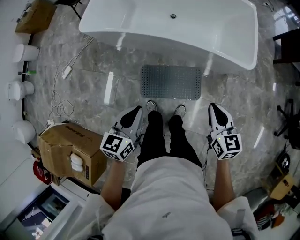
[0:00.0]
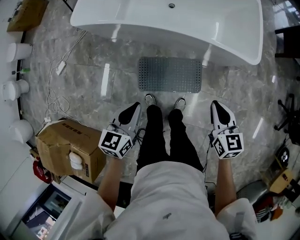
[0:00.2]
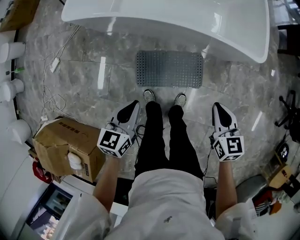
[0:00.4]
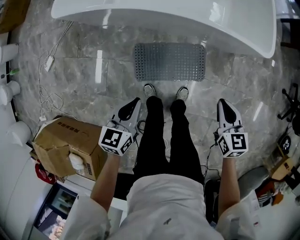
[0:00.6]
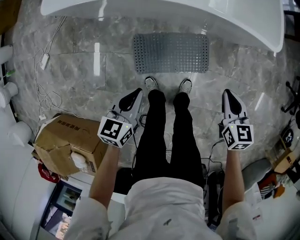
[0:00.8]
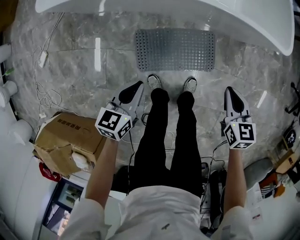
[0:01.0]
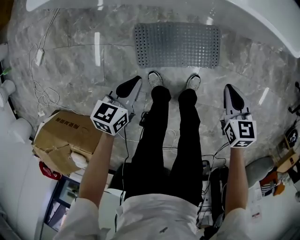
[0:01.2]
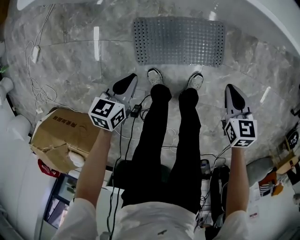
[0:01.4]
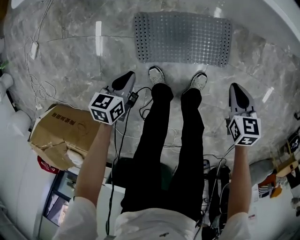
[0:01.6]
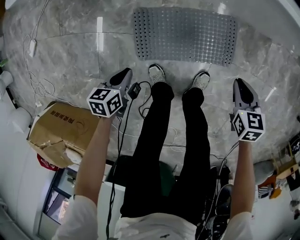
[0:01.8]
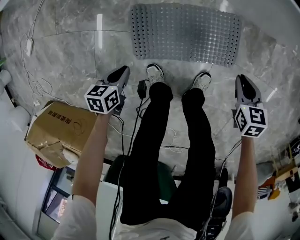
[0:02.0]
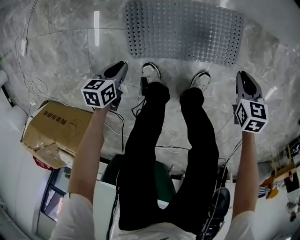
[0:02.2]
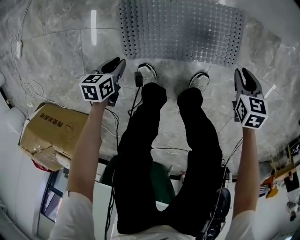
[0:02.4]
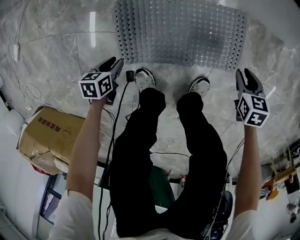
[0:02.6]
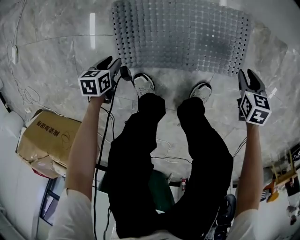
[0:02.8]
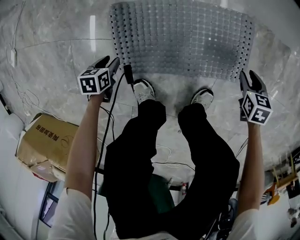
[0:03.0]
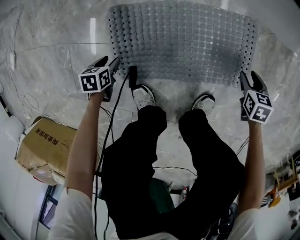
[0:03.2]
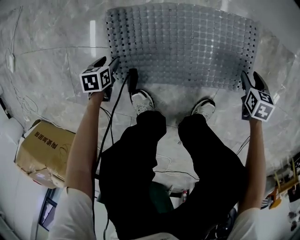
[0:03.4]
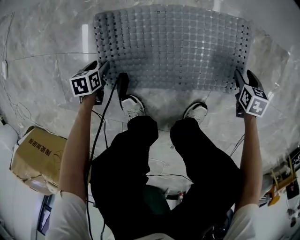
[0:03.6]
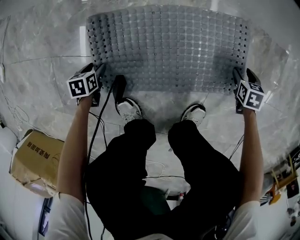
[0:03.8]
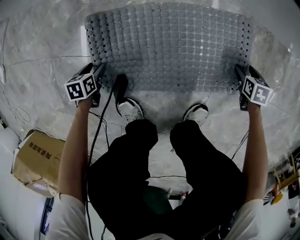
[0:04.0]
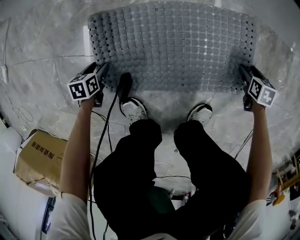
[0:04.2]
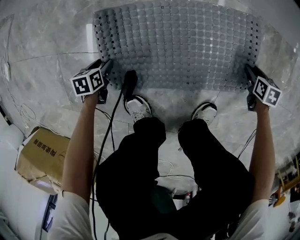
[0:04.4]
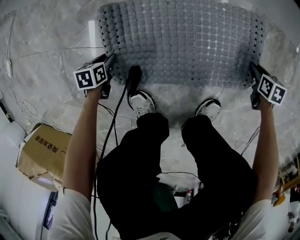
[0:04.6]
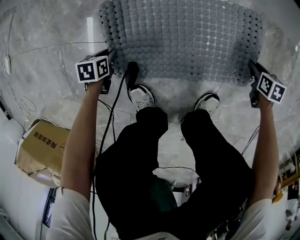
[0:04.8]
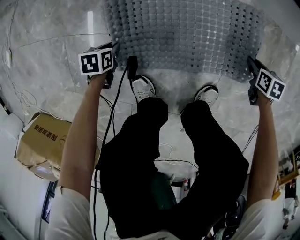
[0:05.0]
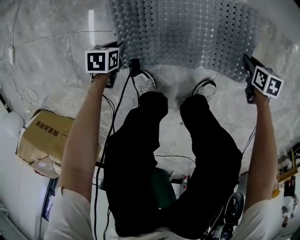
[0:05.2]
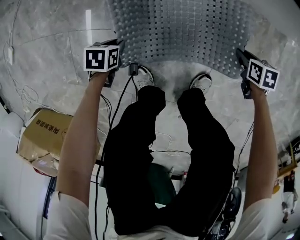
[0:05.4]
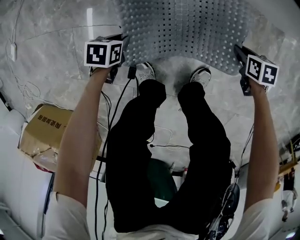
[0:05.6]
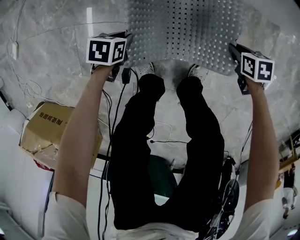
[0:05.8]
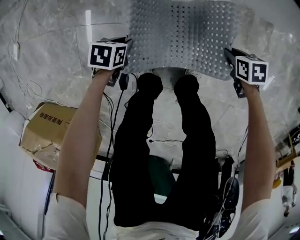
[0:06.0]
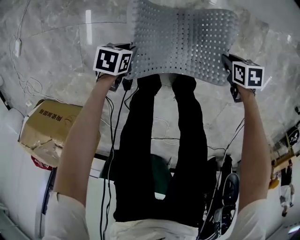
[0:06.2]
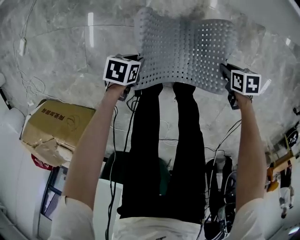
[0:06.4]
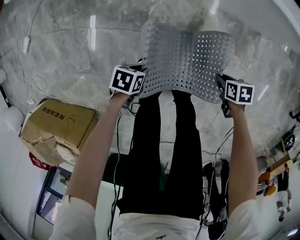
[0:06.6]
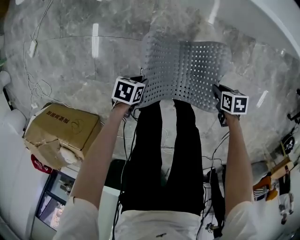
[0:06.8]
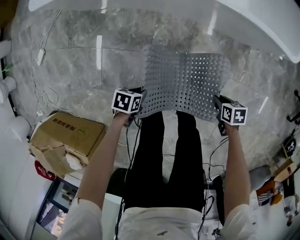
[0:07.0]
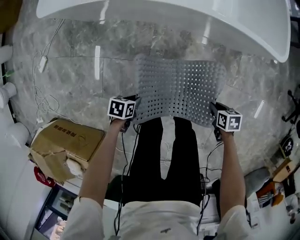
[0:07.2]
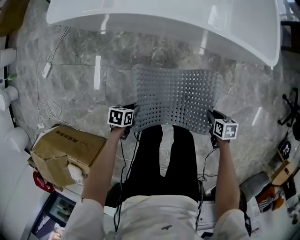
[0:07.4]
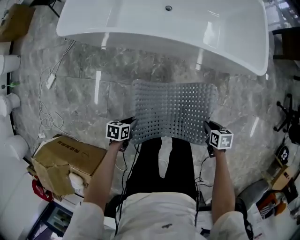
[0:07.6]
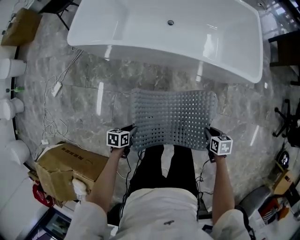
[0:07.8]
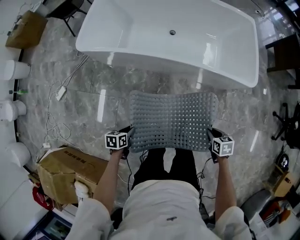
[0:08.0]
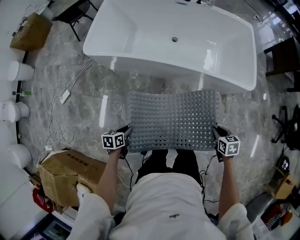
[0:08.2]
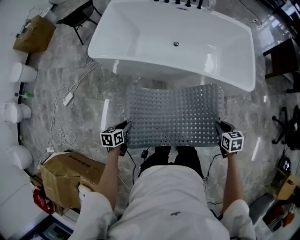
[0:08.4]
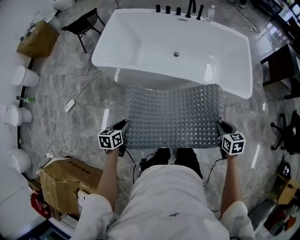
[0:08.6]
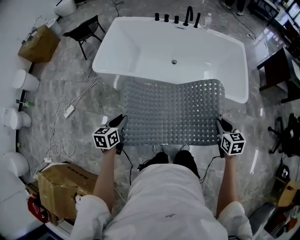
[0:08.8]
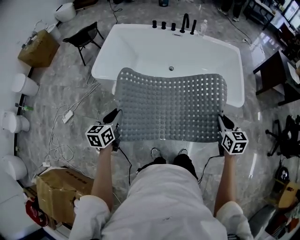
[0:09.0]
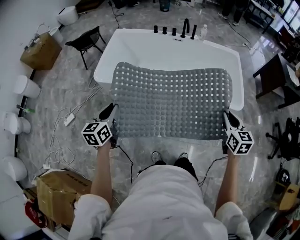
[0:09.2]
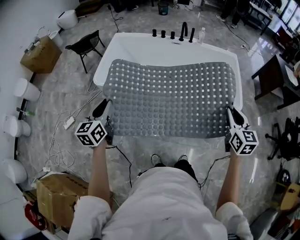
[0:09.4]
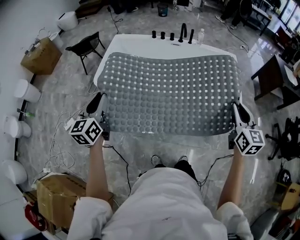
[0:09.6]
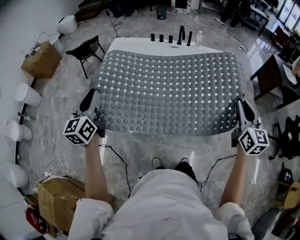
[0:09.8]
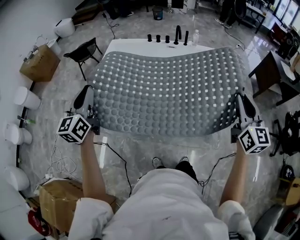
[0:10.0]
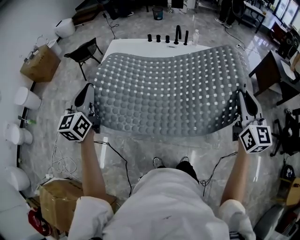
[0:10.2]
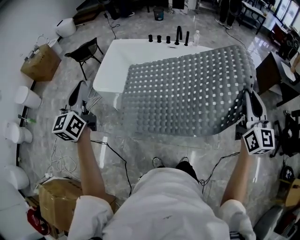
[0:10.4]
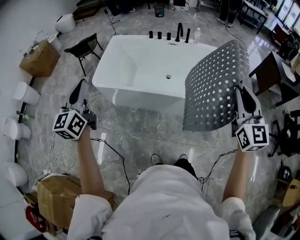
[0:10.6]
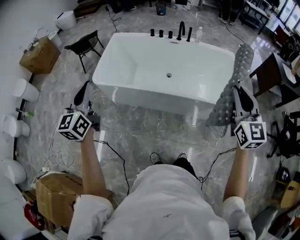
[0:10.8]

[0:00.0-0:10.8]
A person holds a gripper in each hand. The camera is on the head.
0:00.0 to 0:01.6: Both grippers move downward, some 50 cm. The right gripper changes its angle by some 30 degrees, while the left gripper changes its angle by roughly 30 degrees.
0:01.6 to 0:03.0: The grippers both shift downward by some 35 cm. The right gripper opens its fingers. The left gripper swivels about 20 degrees, and opens up.
0:03.0 to 0:04.6: The grippers both shift downward by about 10 cm. The right gripper opens, then closes again.
0:04.6 to 0:06.2: The two grippers go roughly 30 cm upward. The left gripper swivels roughly 20 degrees.
0:06.2 to 0:07.8: The two grippers go some 35 cm upward. The left gripper turns by about 20 degrees.
0:07.8 to 0:09.2: The right gripper heads upward, covering about 40 cm, and points its fingers some 40 degrees further upward. The left gripper shifts approximately 40 cm upward and forward, and points its fingers some 40 degrees further upward.
0:09.2 to 0:10.8: The grippers both shift upward by roughly 20 cm. The right gripper swivels about 30 degrees. Meanwhile the left gripper swivels roughly 30 degrees.

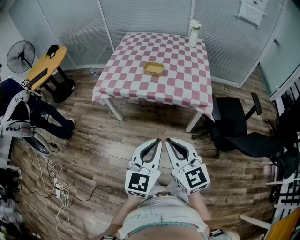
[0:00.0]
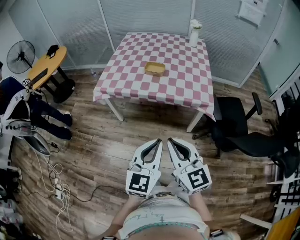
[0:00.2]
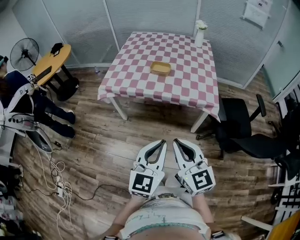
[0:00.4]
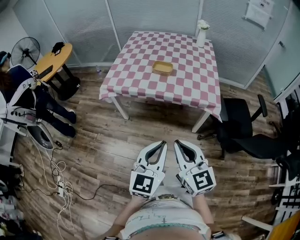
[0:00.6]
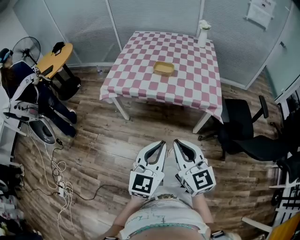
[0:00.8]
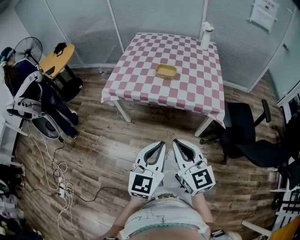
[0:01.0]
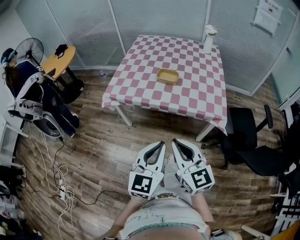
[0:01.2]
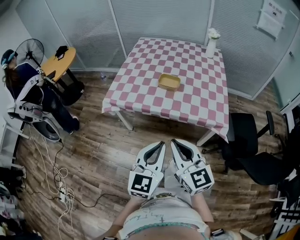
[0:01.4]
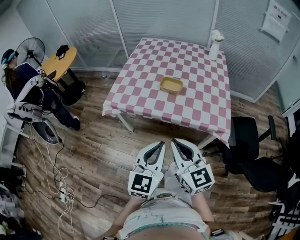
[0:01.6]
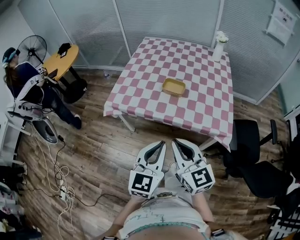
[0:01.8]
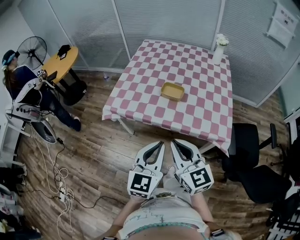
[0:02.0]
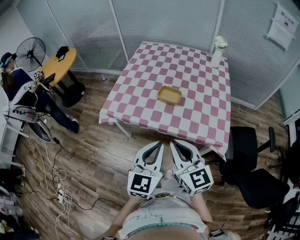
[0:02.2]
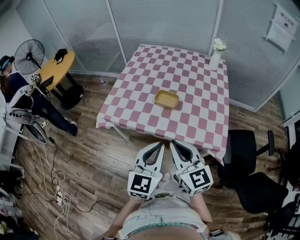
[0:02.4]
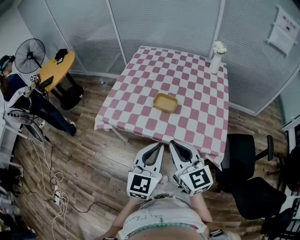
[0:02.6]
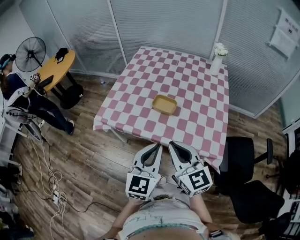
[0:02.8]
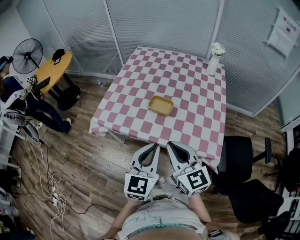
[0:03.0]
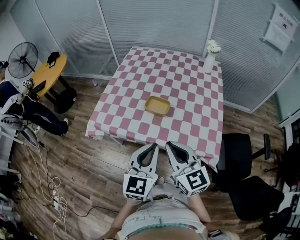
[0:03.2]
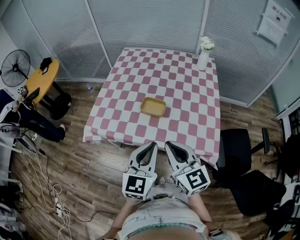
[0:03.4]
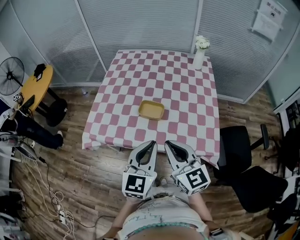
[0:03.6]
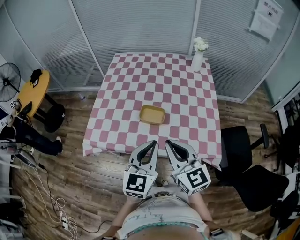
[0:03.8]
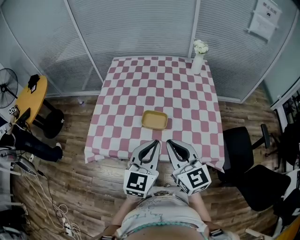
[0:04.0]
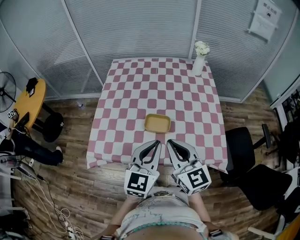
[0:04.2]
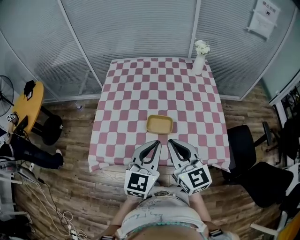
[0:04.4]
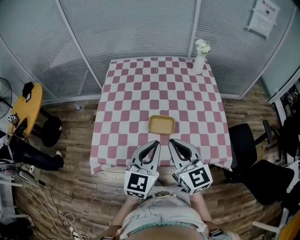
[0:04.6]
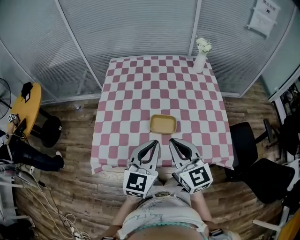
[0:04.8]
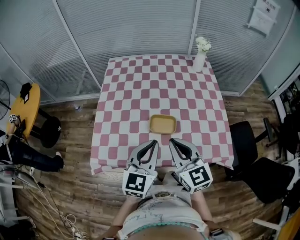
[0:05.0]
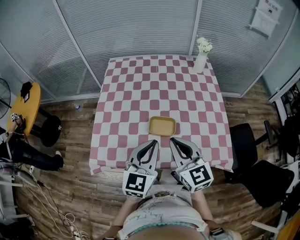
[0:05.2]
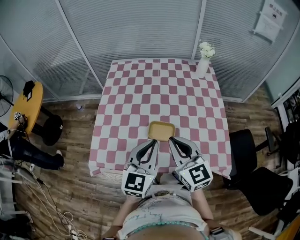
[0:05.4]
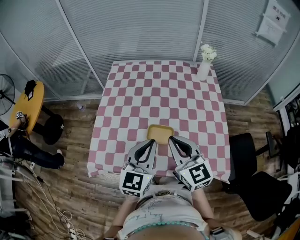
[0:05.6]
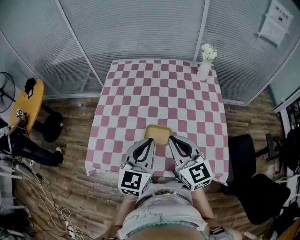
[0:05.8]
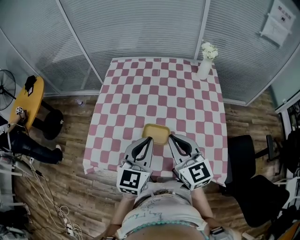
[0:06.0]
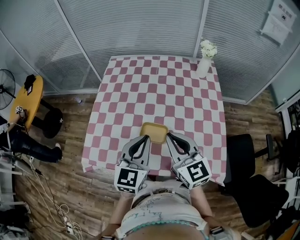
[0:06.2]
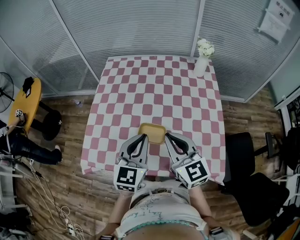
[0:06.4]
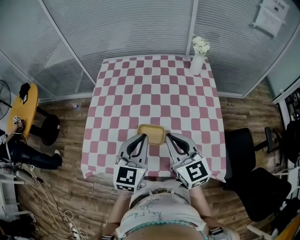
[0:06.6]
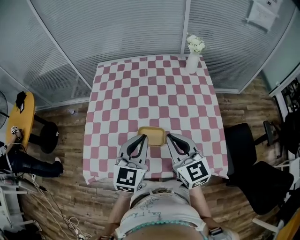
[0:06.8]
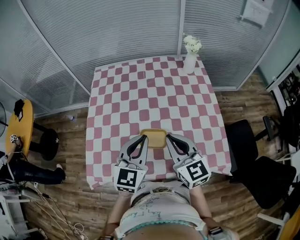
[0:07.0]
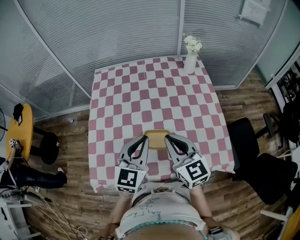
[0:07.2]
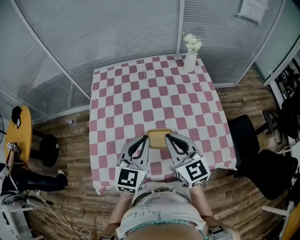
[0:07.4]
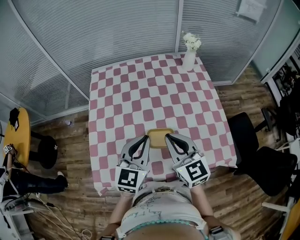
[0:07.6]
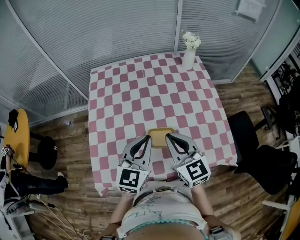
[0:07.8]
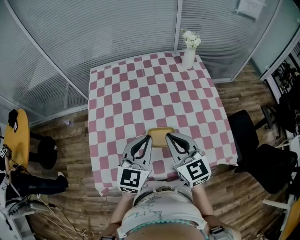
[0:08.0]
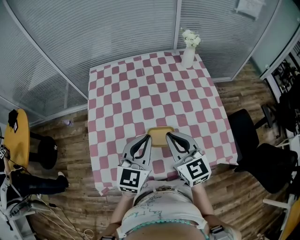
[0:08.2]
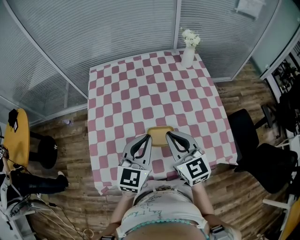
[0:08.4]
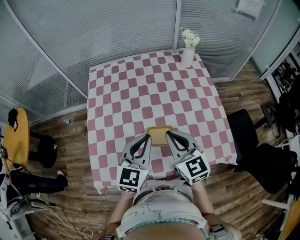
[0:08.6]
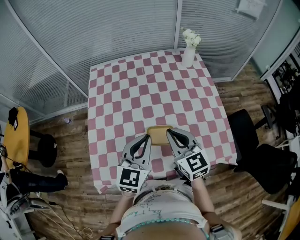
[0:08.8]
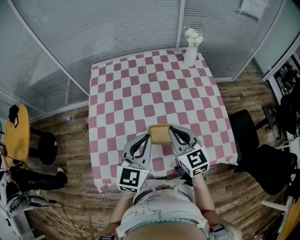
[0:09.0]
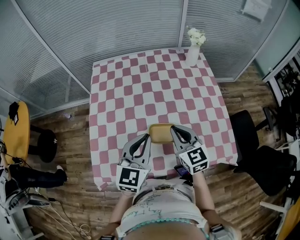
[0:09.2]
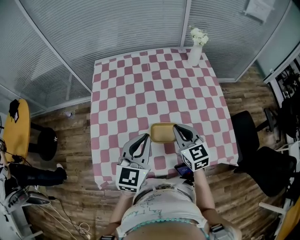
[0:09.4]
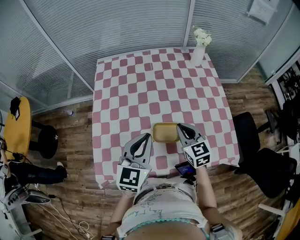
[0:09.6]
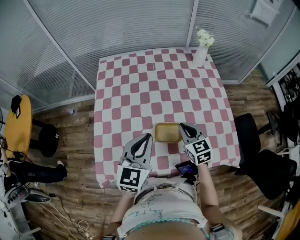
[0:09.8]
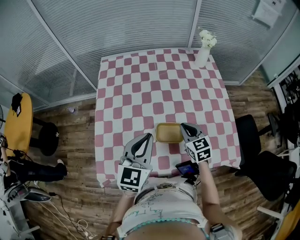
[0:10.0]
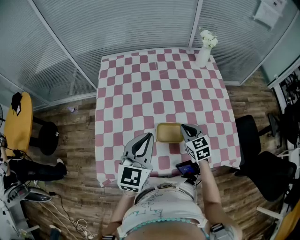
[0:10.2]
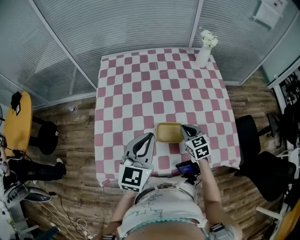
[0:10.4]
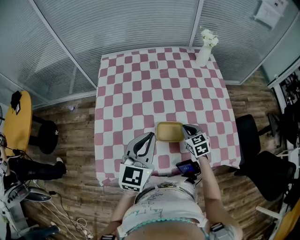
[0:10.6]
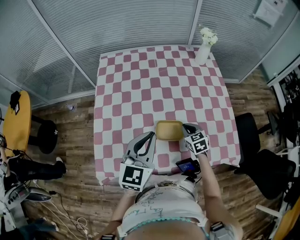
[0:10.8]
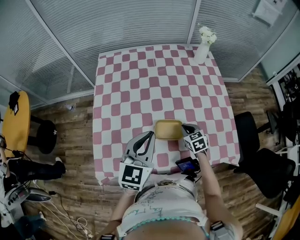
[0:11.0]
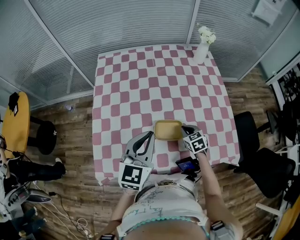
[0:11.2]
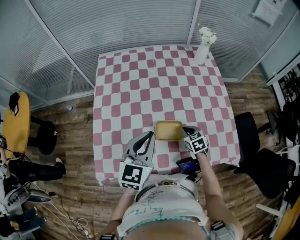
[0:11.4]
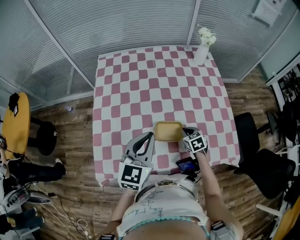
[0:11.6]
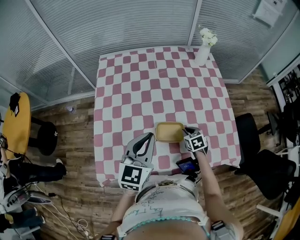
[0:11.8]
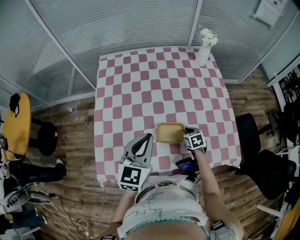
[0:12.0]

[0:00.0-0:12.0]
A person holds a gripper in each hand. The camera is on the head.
0:00.0 to 0:01.6: The grippers both shift forward by some 20 cm.
0:01.6 to 0:03.0: The grippers both shift forward and to the right by some 15 cm.
0:03.0 to 0:04.4: The two grippers go roughly 15 cm forward.
0:04.4 to 0:06.0: The grippers both shift forward by about 10 cm.
0:06.0 to 0:07.6: The right gripper is displaced to the left by roughly 5 cm; the left gripper travels forward and to the left by approximately 10 cm.
0:07.6 to 0:09.0: The right gripper ends up roughly 5 cm from where it was.
0:09.0 to 0:10.4: The right gripper goes roughly 15 cm downward, and rotates about 20 degrees.
0:10.4 to 0:12.0: The right gripper heads downward, covering some 10 cm, and changes its angle by roughly 20 degrees.

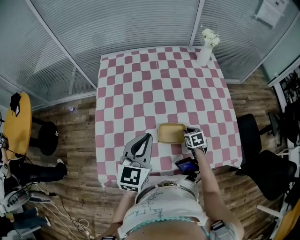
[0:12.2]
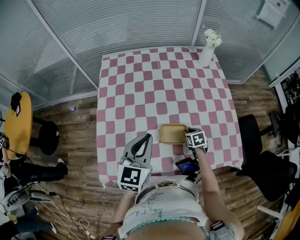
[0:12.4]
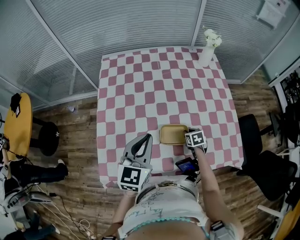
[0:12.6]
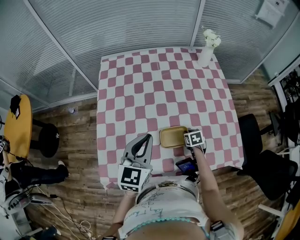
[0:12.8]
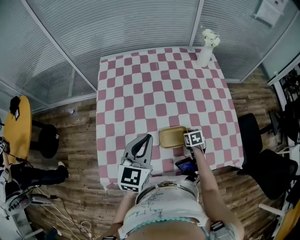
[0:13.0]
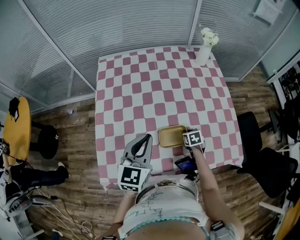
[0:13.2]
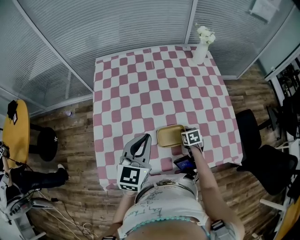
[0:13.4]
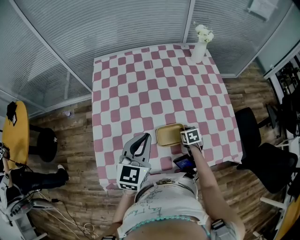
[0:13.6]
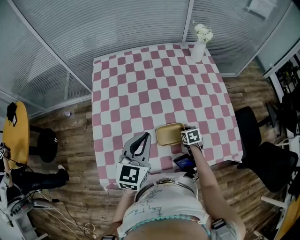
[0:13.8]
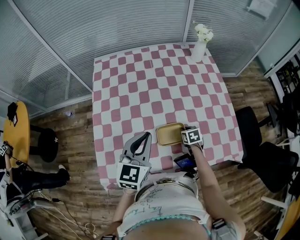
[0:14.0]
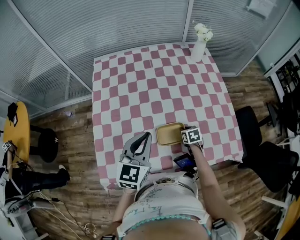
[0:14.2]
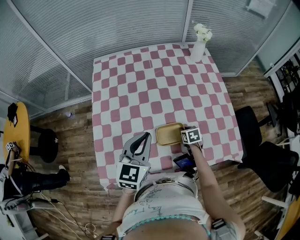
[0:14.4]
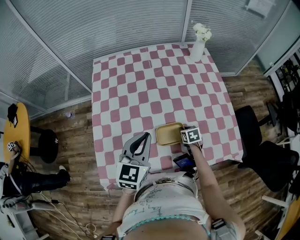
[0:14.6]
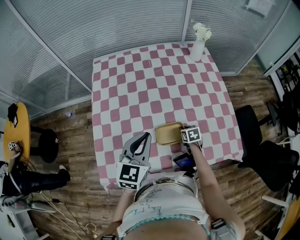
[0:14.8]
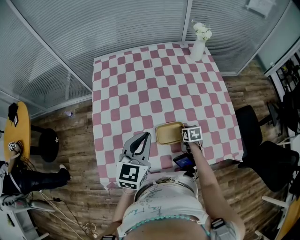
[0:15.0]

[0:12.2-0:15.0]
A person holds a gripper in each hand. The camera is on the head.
0:12.2 to 0:15.0: The grippers make only small movements.
